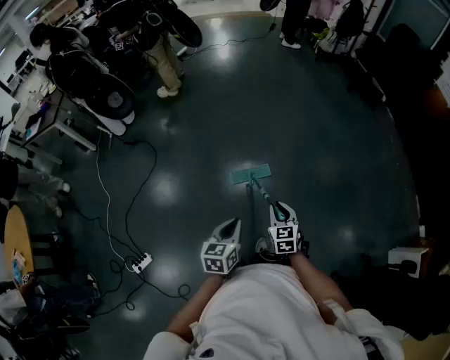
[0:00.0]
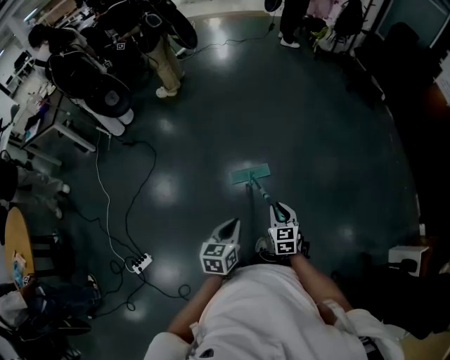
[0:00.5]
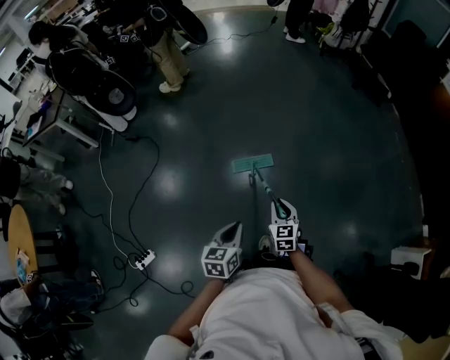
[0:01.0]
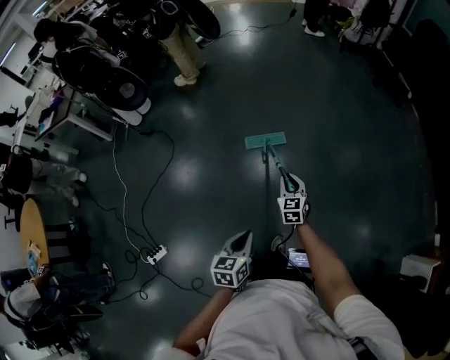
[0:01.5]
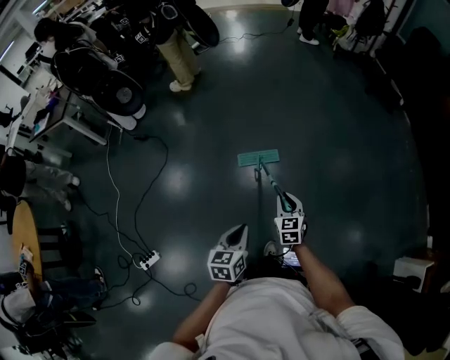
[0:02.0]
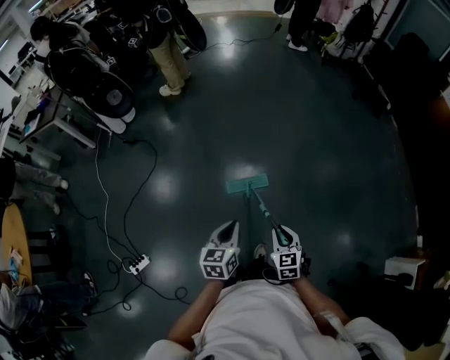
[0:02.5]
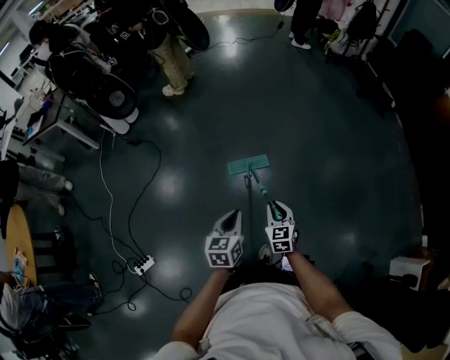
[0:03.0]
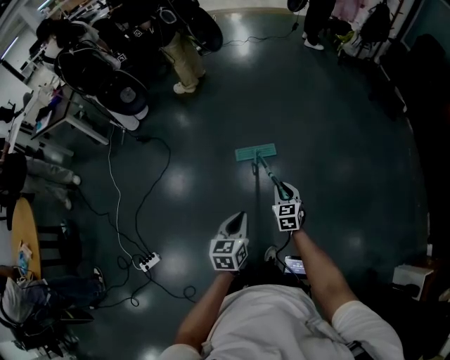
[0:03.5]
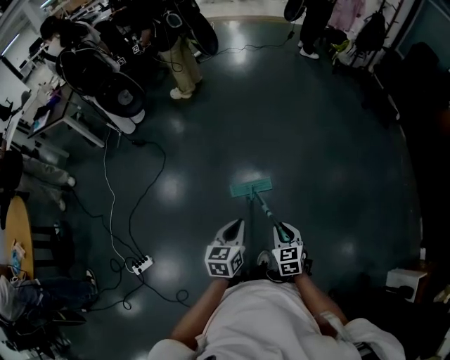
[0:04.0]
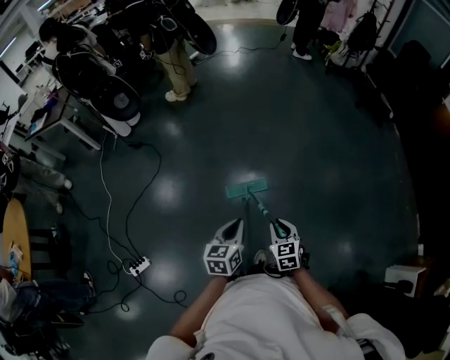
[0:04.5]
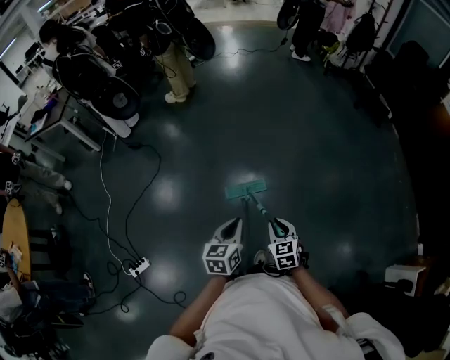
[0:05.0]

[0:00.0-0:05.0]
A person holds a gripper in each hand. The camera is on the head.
0:00.0 to 0:02.5: The left gripper moves about 5 cm. The right gripper goes forward and returns, roughly 15 cm each way.
0:02.5 to 0:05.0: The right gripper goes forward and returns, about 20 cm each way.

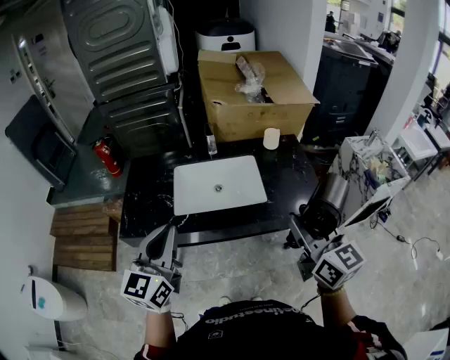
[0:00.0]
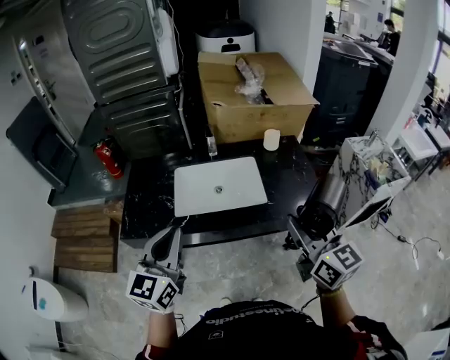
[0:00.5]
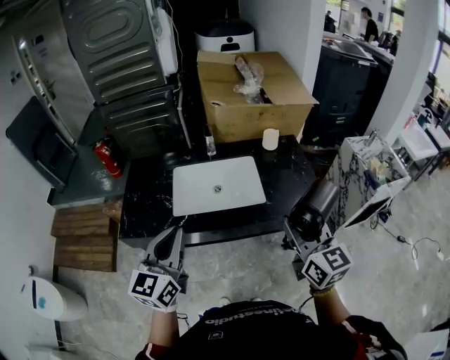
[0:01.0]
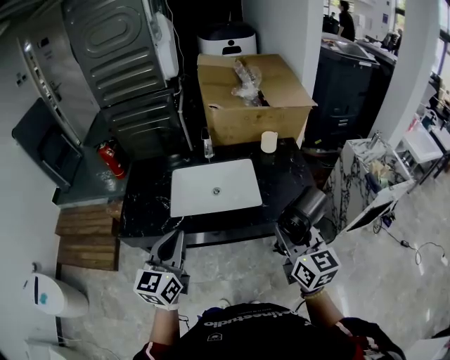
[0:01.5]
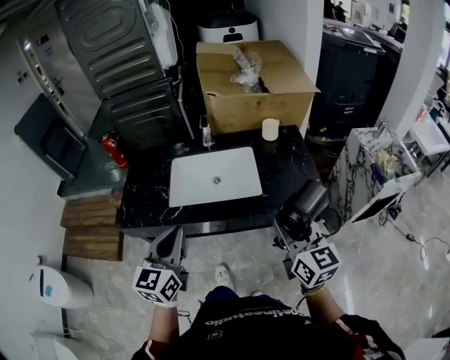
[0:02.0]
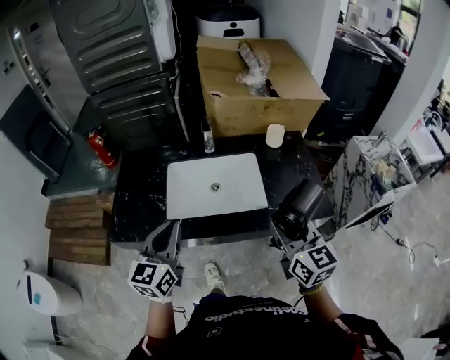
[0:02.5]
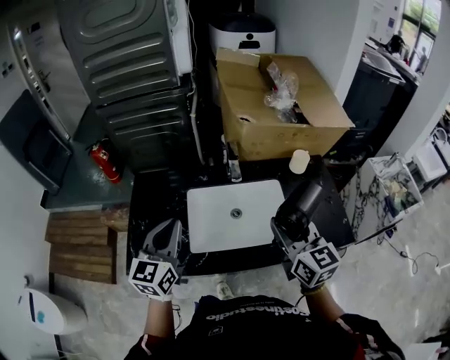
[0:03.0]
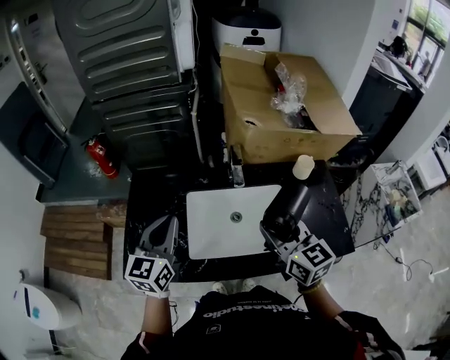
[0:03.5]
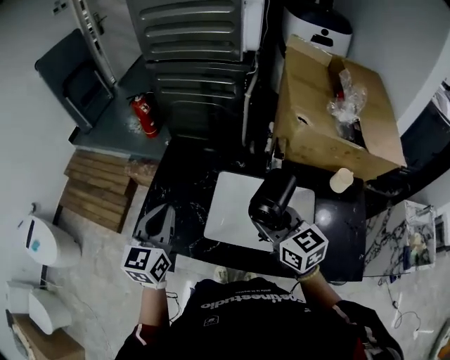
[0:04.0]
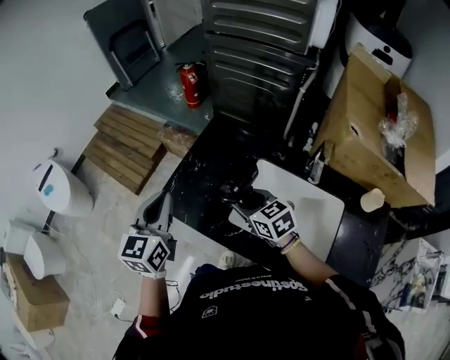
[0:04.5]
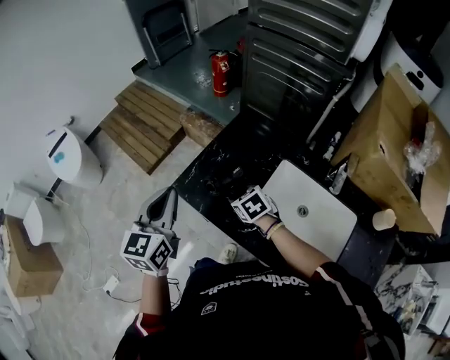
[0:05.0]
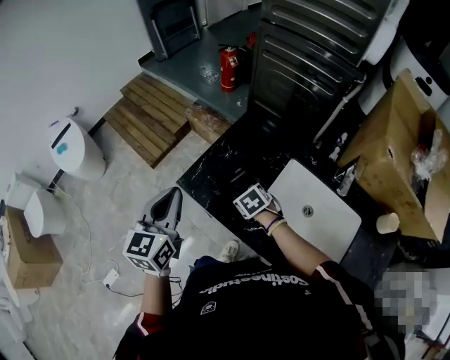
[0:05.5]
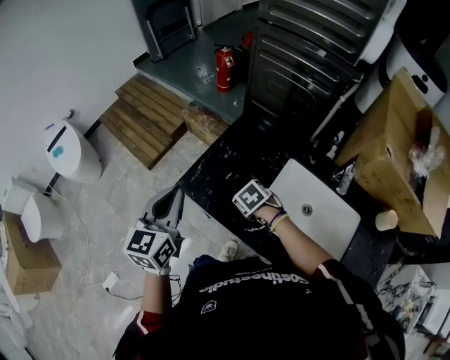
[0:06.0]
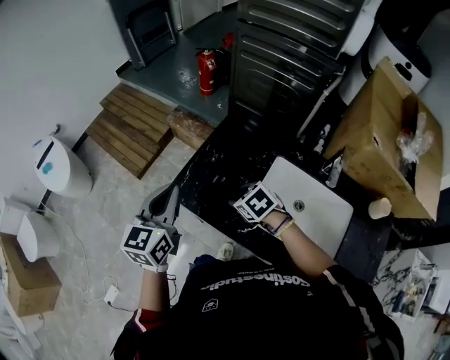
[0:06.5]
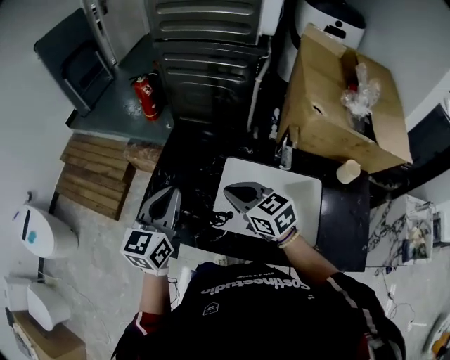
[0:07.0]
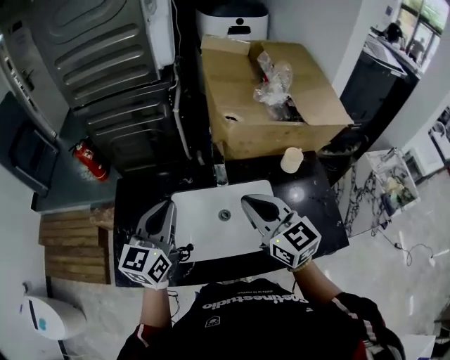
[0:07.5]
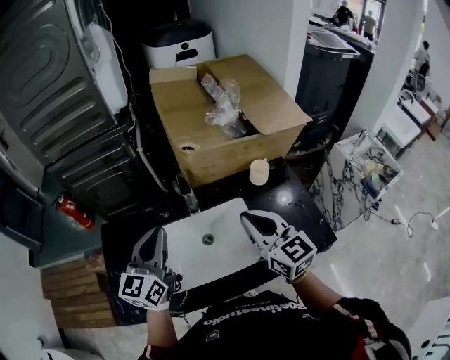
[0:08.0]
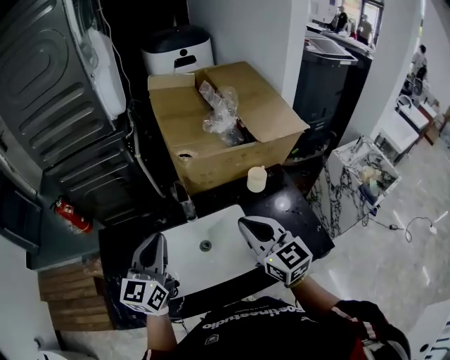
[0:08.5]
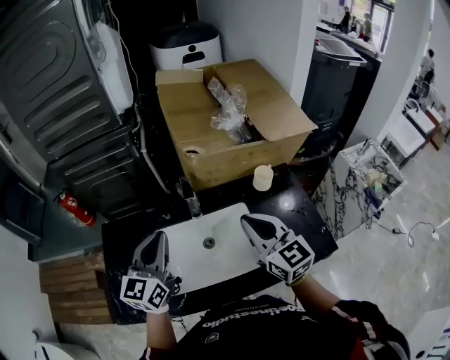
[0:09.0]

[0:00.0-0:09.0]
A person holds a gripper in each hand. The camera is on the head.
0:00.0 to 0:02.0: The right gripper goes some 10 cm downward, while the left gripper heads to the right and downward, covering some 10 cm.
0:02.0 to 0:04.5: The left gripper shifts by roughly 35 cm, and swivels roughly 30 degrees. Meanwhile the right gripper shifts by about 60 cm, and changes its angle by approximately 60 degrees.
0:04.5 to 0:07.0: The right gripper travels downward and back again, roughly 15 cm each way, and closes up. Meanwhile the left gripper moves to the right, some 10 cm, and turns by roughly 20 degrees.
0:07.0 to 0:09.0: The right gripper moves about 35 cm, and changes its angle by roughly 50 degrees. Meanwhile the left gripper moves approximately 25 cm, and rotates about 30 degrees.

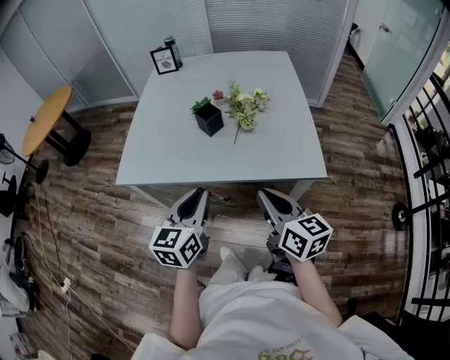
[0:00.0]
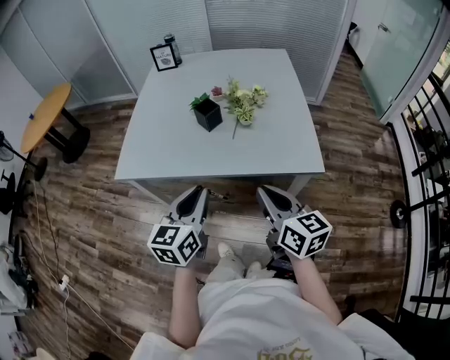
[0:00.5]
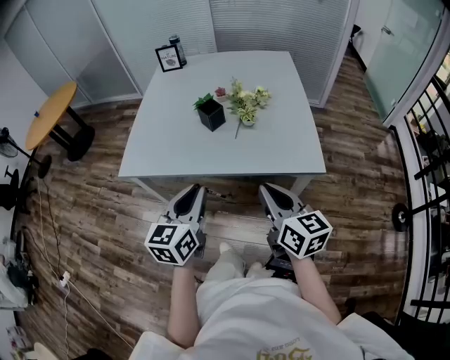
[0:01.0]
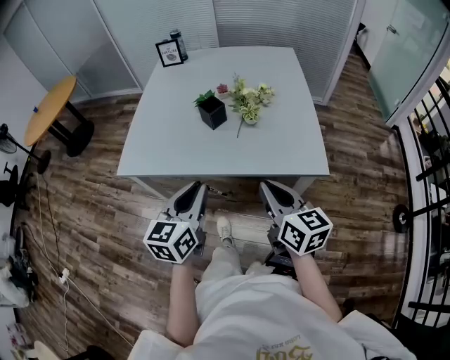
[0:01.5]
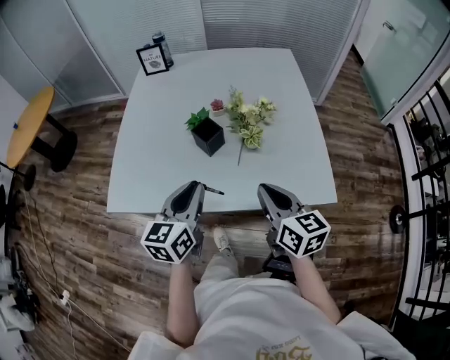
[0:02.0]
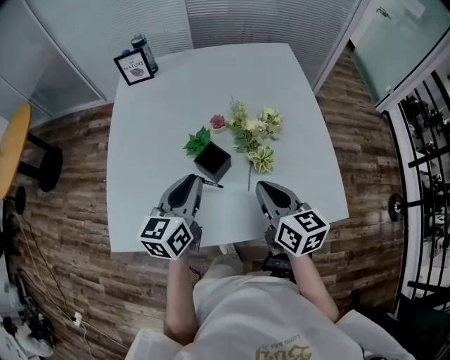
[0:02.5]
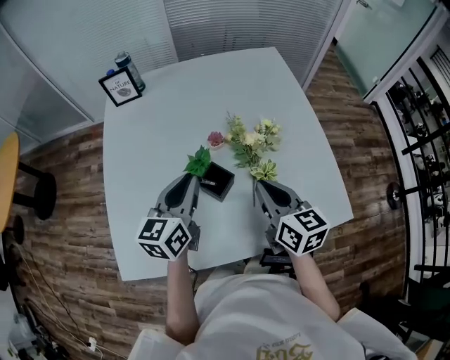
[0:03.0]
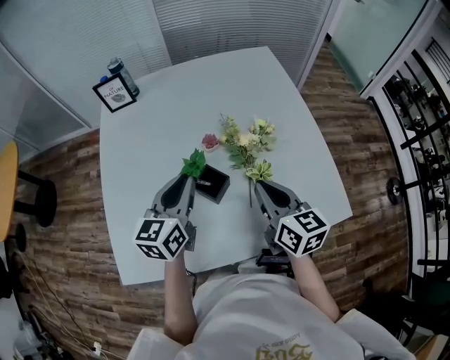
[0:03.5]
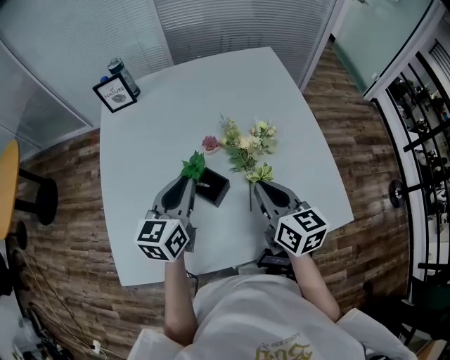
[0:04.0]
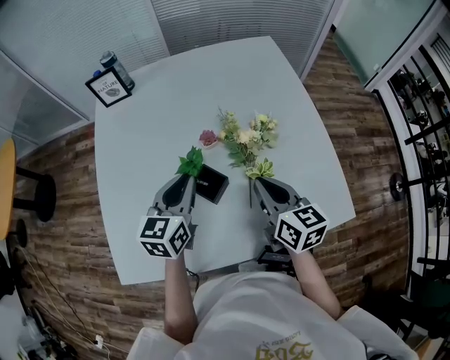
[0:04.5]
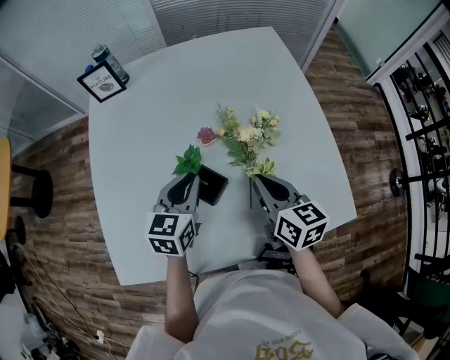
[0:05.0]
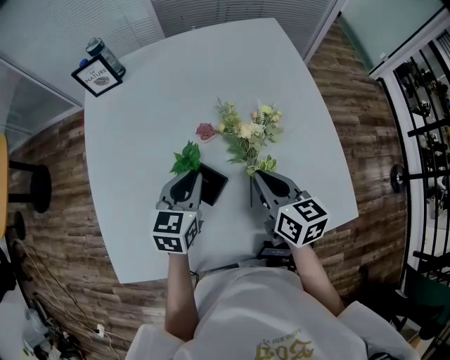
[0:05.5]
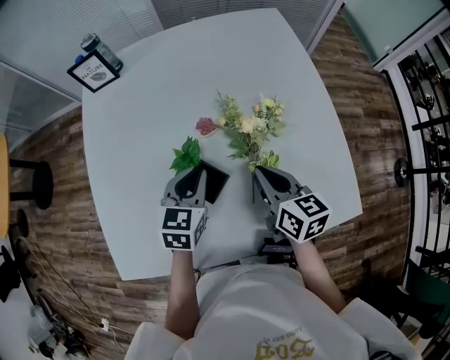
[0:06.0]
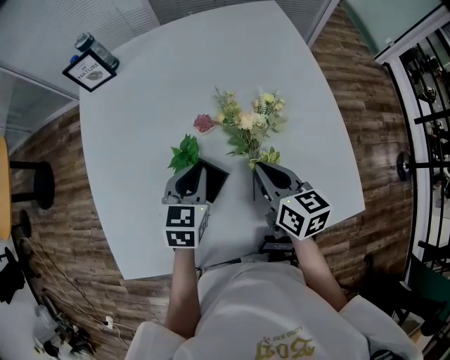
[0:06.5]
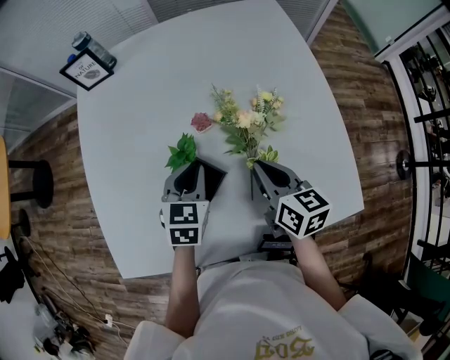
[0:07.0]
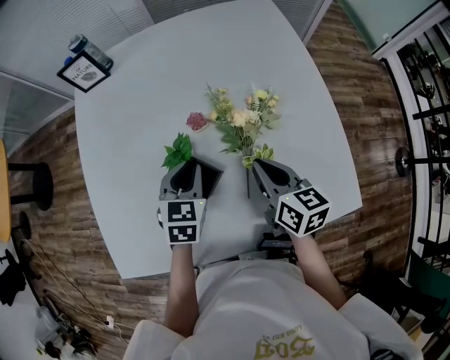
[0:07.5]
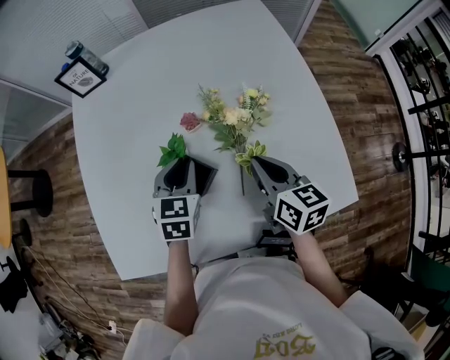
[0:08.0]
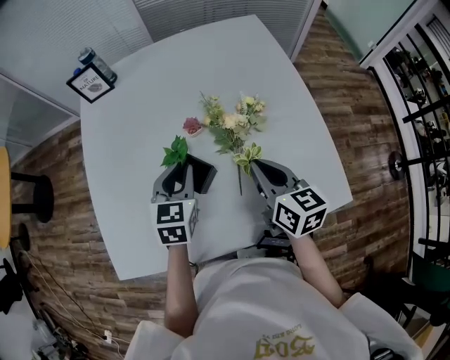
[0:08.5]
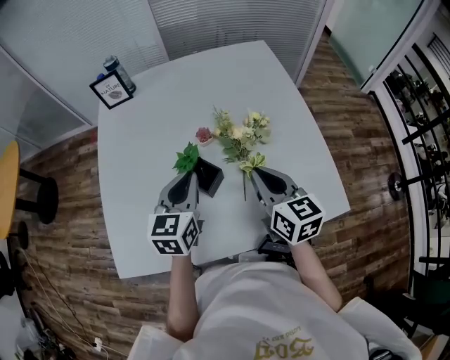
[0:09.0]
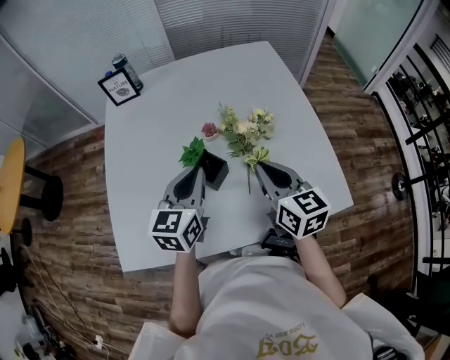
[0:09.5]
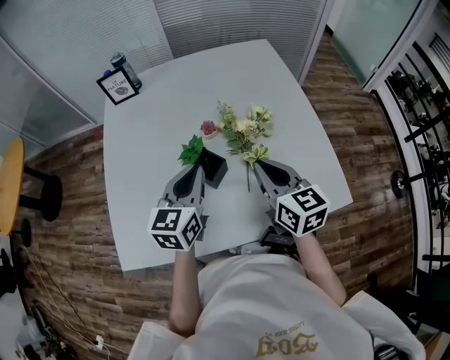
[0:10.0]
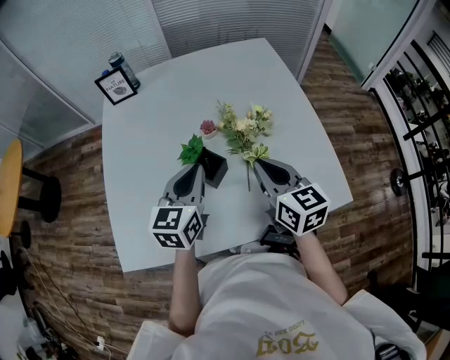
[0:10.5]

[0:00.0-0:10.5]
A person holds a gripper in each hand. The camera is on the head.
0:00.0 to 0:02.0: The grippers both shift forward by approximately 15 cm.
0:02.0 to 0:04.0: The grippers both shift forward by some 25 cm.
0:04.0 to 0:06.5: The right gripper moves downward and forward, about 10 cm, while the left gripper moves downward, roughly 10 cm, and swivels about 30 degrees.
0:06.5 to 0:08.5: The right gripper goes approximately 5 cm upward.
0:08.5 to 0:10.5: The left gripper heads upward and backward, covering some 10 cm, and changes its angle by approximately 20 degrees, while the right gripper is displaced upward by roughly 5 cm.

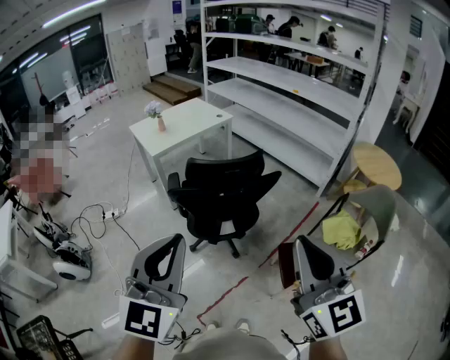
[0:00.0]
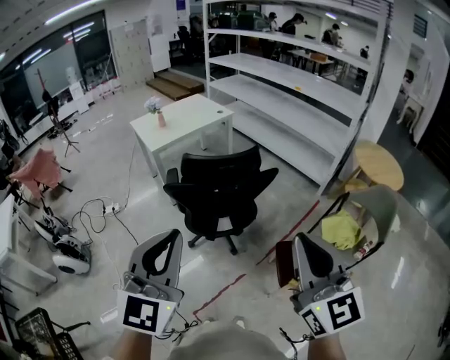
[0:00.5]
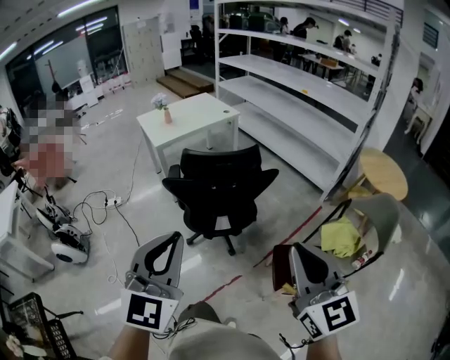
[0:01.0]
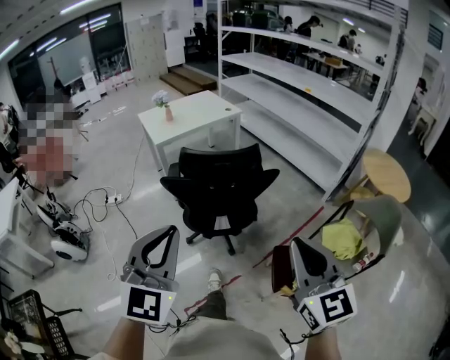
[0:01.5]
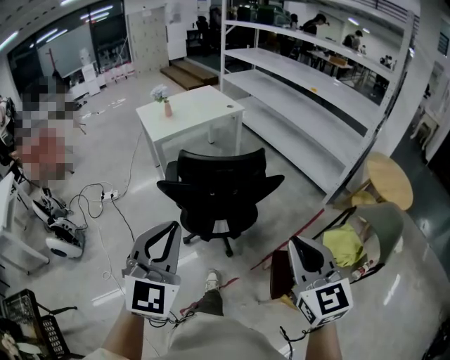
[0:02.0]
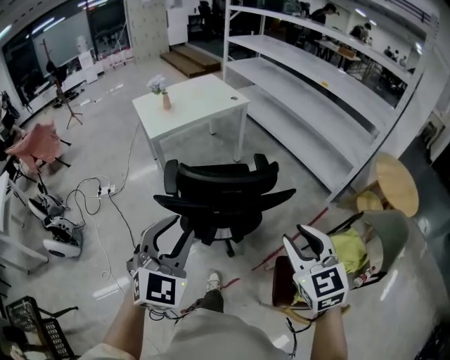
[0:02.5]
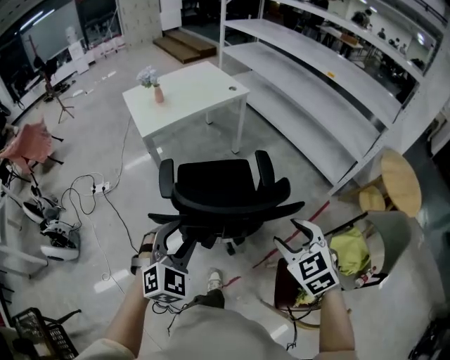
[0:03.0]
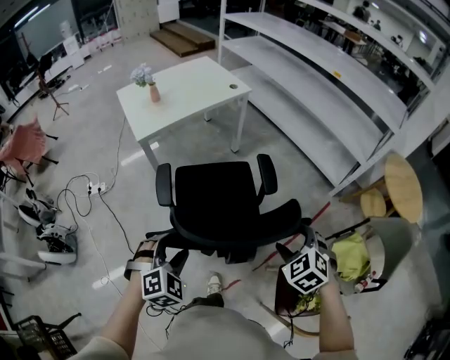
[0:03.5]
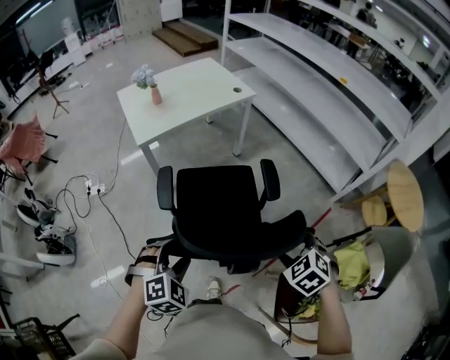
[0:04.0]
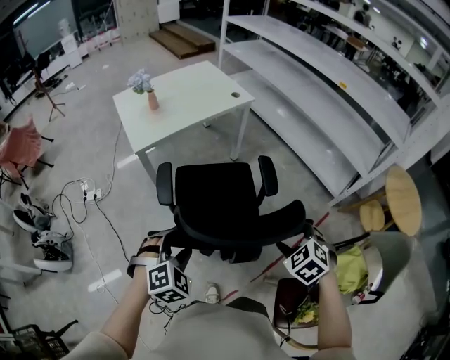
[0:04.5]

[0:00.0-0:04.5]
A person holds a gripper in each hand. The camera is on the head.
0:00.0 to 0:02.0: The right gripper moves downward, forward and to the right, approximately 15 cm. Meanwhile the left gripper travels forward and downward by some 10 cm.
0:02.0 to 0:04.5: Both grippers travel together forward and downward, some 40 cm. The left gripper angles its fingers downward, by roughly 50 degrees, and opens its fingers. Meanwhile the right gripper tilts its fingers roughly 50 degrees downward, and opens.
